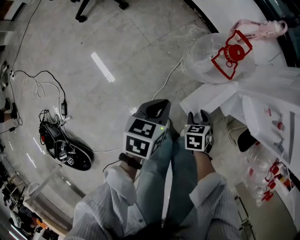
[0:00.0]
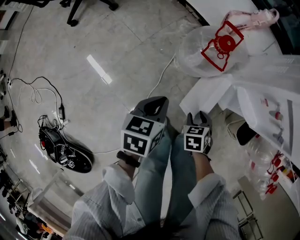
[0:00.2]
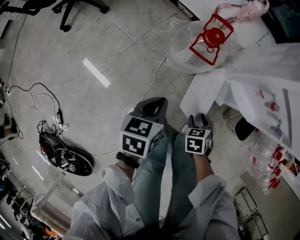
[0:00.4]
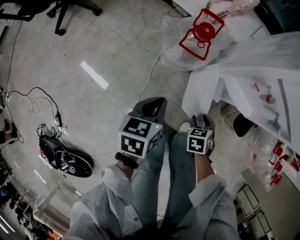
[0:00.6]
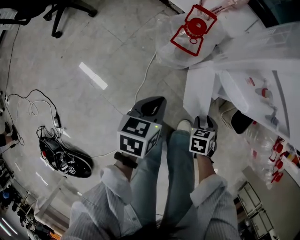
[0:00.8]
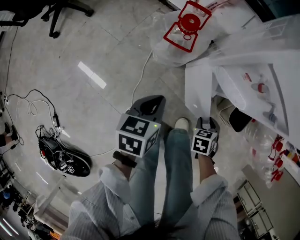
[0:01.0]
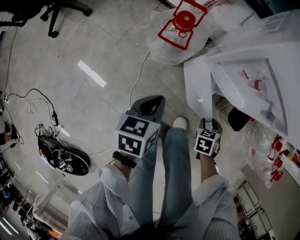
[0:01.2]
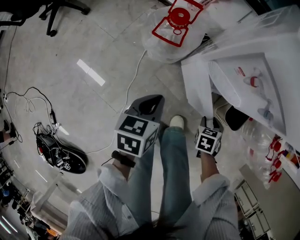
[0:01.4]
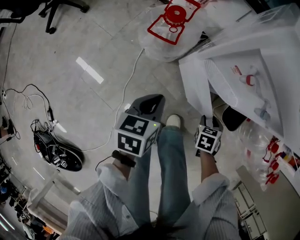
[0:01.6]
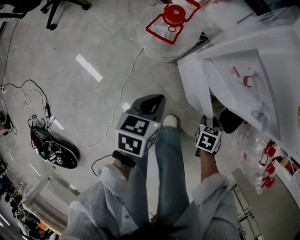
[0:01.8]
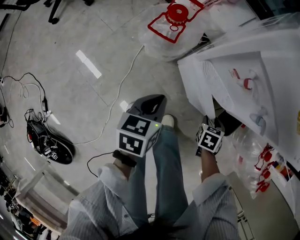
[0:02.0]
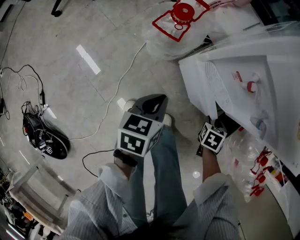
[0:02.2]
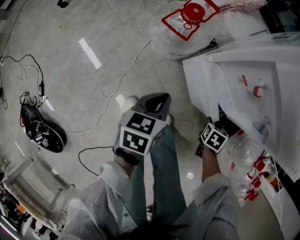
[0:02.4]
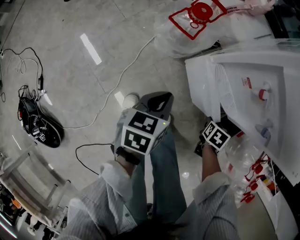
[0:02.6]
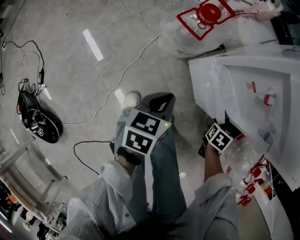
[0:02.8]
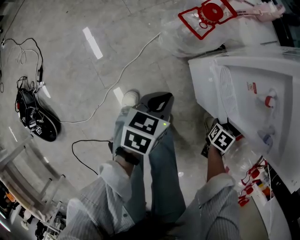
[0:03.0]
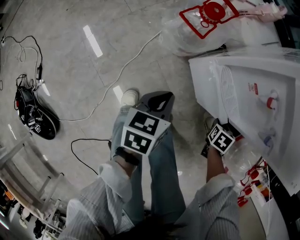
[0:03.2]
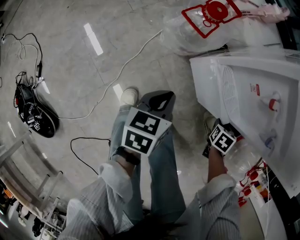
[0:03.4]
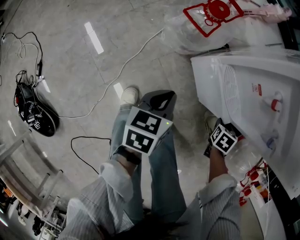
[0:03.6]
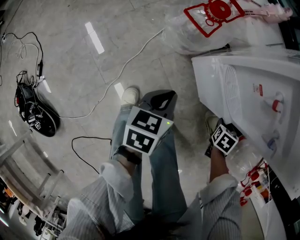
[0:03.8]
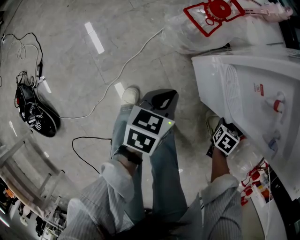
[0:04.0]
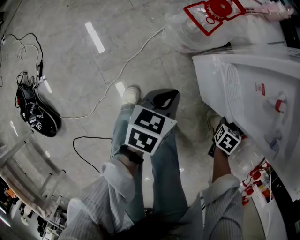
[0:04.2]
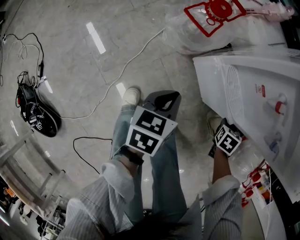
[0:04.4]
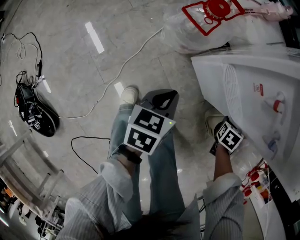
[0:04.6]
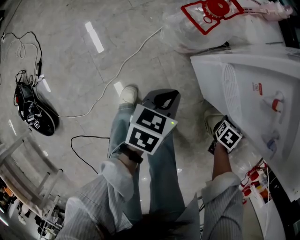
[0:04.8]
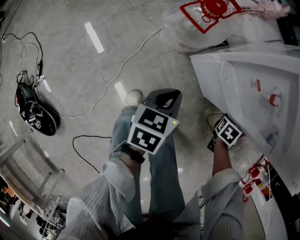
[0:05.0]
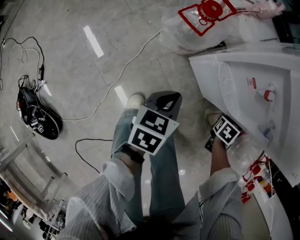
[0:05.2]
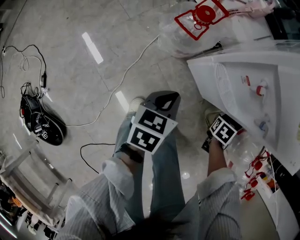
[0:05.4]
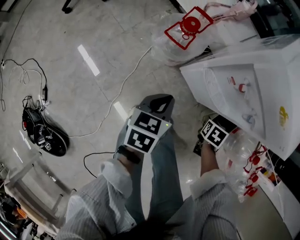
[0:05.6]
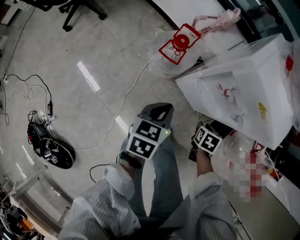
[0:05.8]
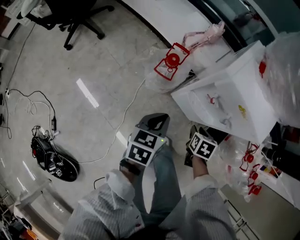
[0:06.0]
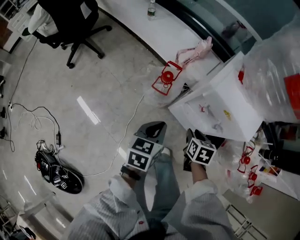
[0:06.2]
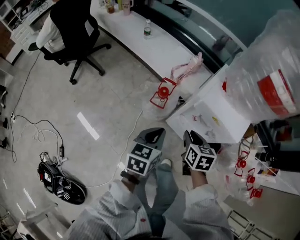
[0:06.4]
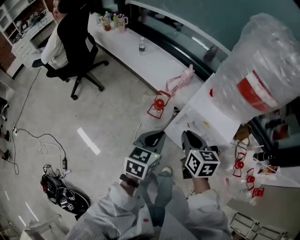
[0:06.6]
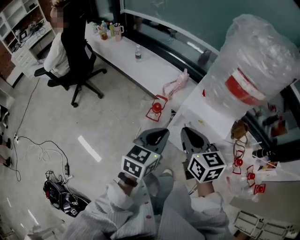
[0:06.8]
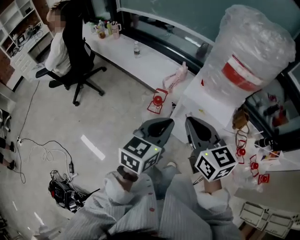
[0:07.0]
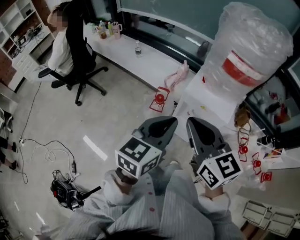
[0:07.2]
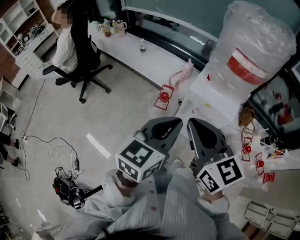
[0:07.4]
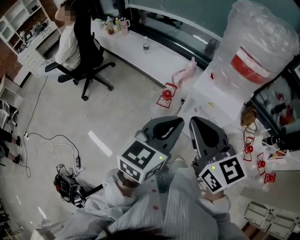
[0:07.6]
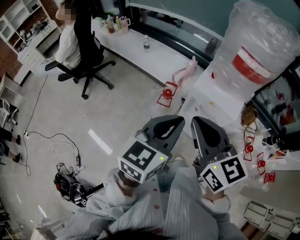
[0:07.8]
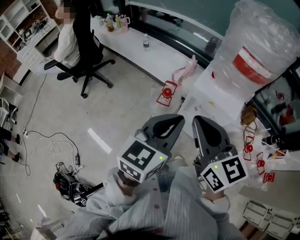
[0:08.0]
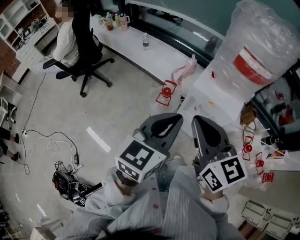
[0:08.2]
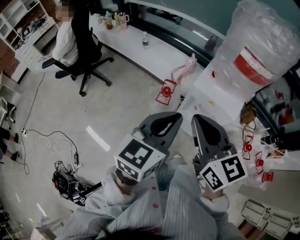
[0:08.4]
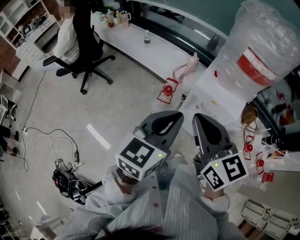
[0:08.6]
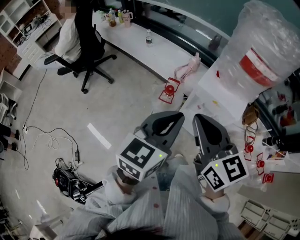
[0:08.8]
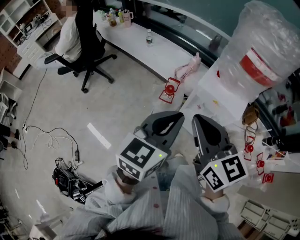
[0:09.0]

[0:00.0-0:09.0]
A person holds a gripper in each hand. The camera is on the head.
0:00.0 to 0:01.6: The right gripper is displaced to the right by approximately 30 cm, and rotates some 20 degrees. Meanwhile the left gripper travels to the right by approximately 20 cm.
0:01.6 to 0:03.0: The right gripper changes place by some 10 cm.
0:03.0 to 0:04.4: The grippers stay close to where they were, moving slightly.
0:04.4 to 0:06.0: The left gripper moves upward, roughly 20 cm, while the right gripper goes roughly 25 cm upward, to the left and backward, and turns by some 20 degrees.
0:06.0 to 0:07.6: The two grippers go some 40 cm upward. The right gripper tilts its fingers about 60 degrees upward, and closes, while the left gripper rotates some 30 degrees.
0:07.6 to 0:09.0: The grippers move only a little.

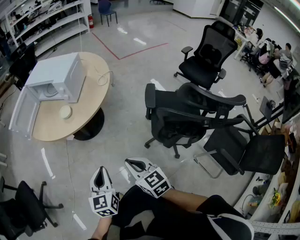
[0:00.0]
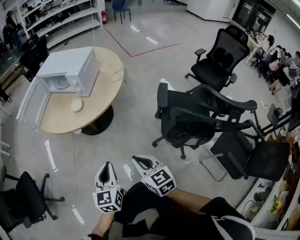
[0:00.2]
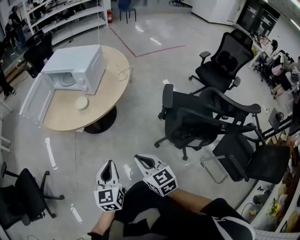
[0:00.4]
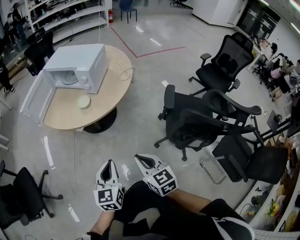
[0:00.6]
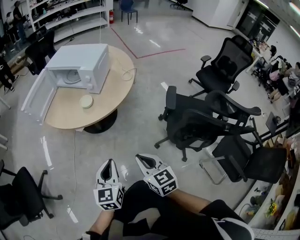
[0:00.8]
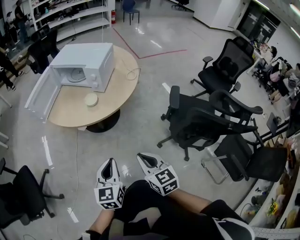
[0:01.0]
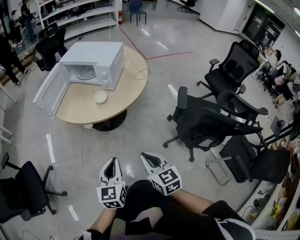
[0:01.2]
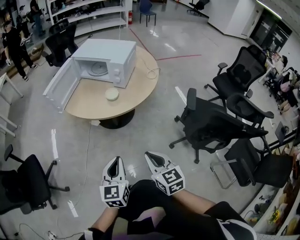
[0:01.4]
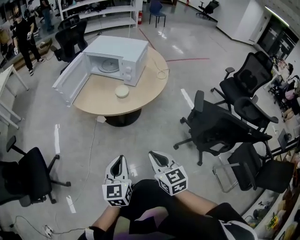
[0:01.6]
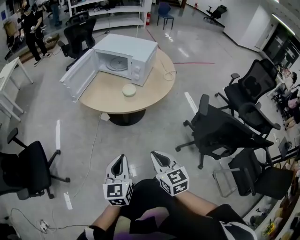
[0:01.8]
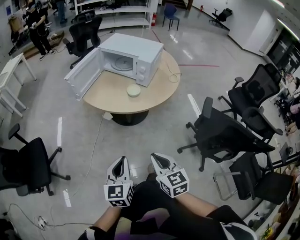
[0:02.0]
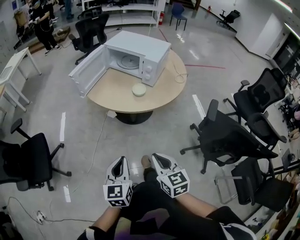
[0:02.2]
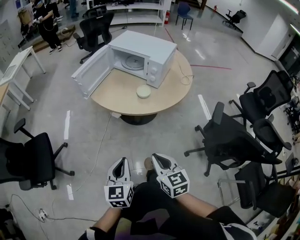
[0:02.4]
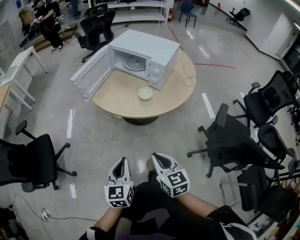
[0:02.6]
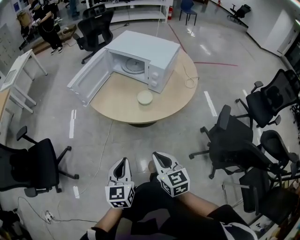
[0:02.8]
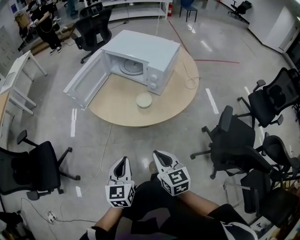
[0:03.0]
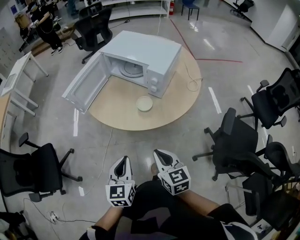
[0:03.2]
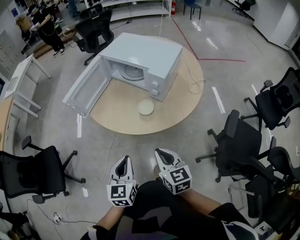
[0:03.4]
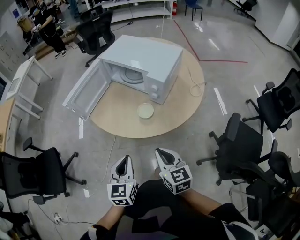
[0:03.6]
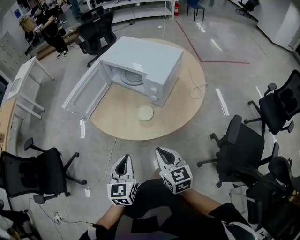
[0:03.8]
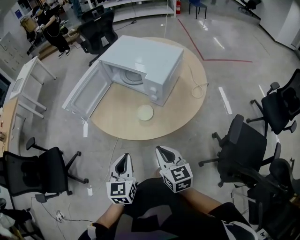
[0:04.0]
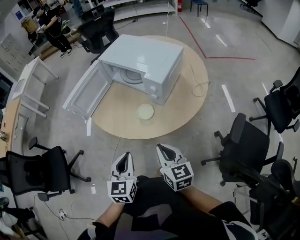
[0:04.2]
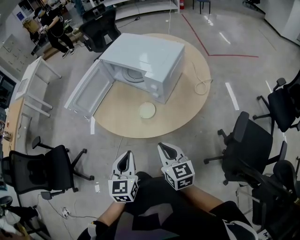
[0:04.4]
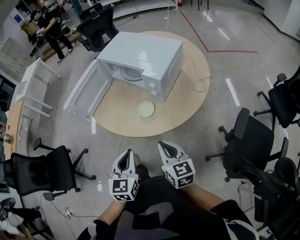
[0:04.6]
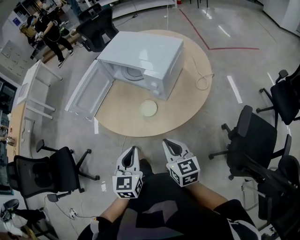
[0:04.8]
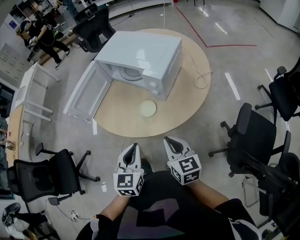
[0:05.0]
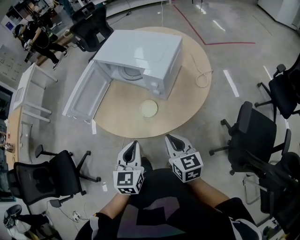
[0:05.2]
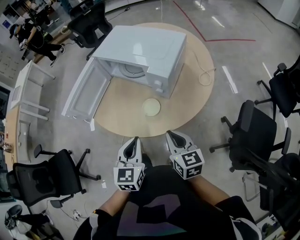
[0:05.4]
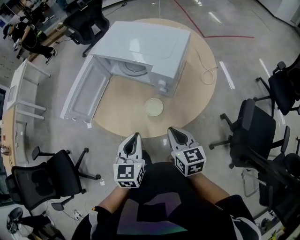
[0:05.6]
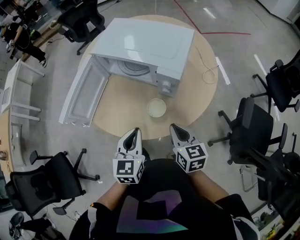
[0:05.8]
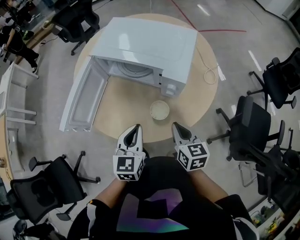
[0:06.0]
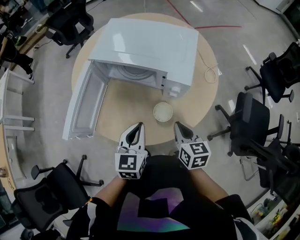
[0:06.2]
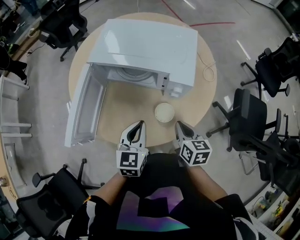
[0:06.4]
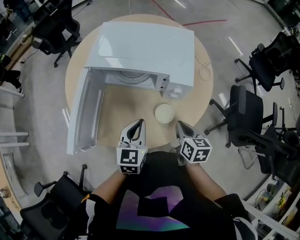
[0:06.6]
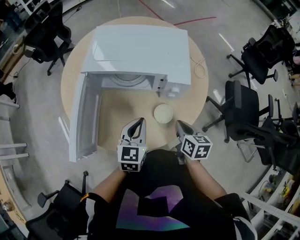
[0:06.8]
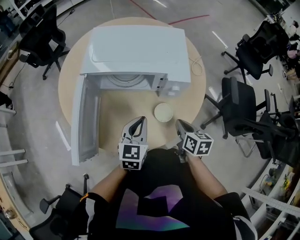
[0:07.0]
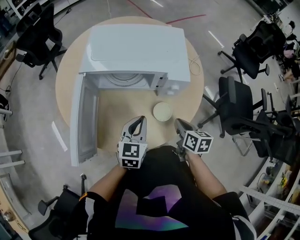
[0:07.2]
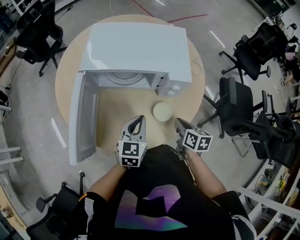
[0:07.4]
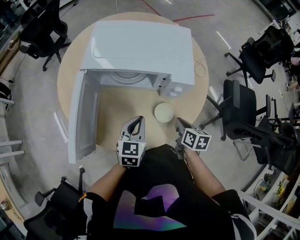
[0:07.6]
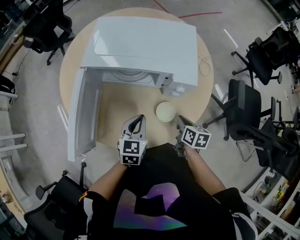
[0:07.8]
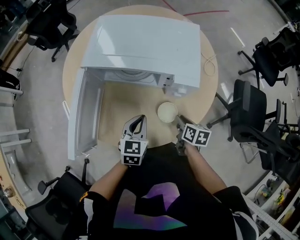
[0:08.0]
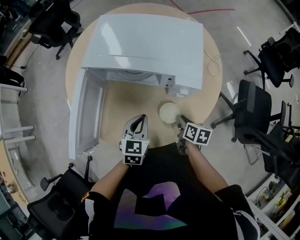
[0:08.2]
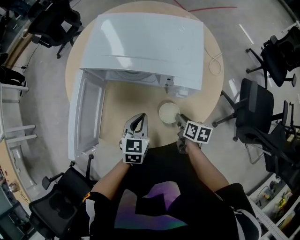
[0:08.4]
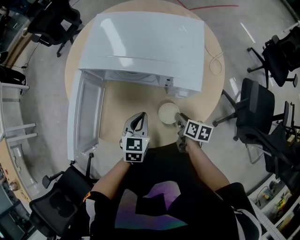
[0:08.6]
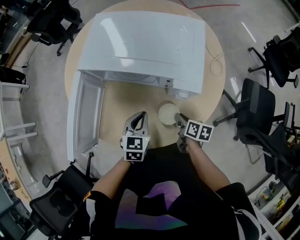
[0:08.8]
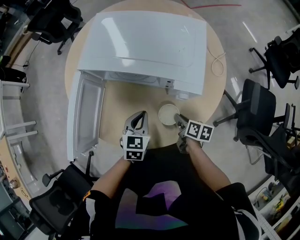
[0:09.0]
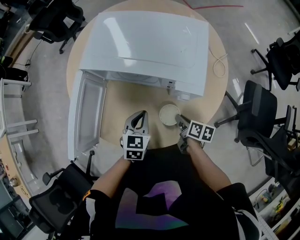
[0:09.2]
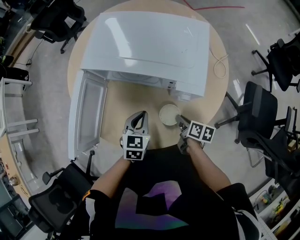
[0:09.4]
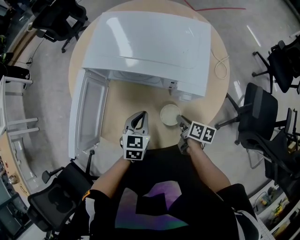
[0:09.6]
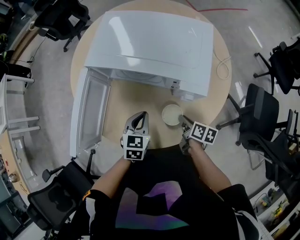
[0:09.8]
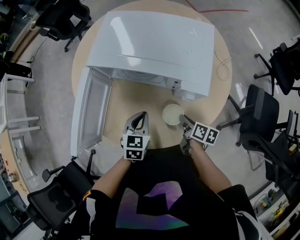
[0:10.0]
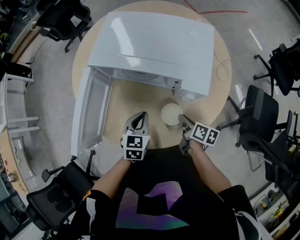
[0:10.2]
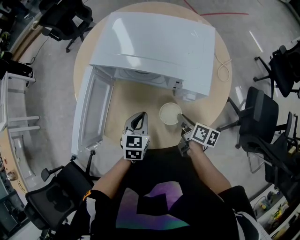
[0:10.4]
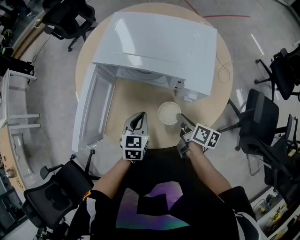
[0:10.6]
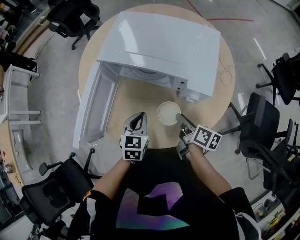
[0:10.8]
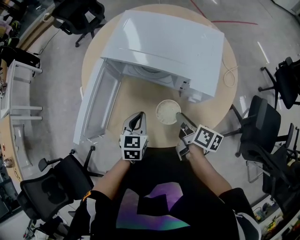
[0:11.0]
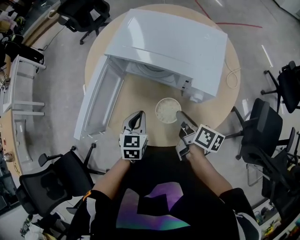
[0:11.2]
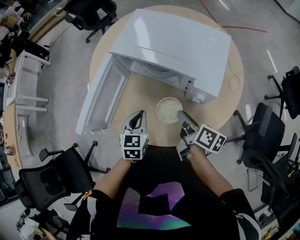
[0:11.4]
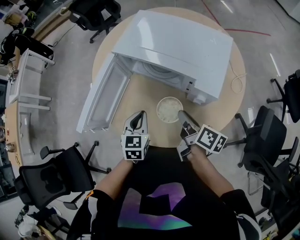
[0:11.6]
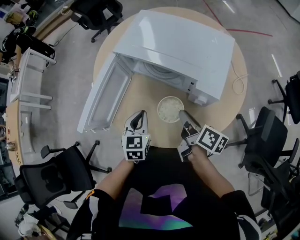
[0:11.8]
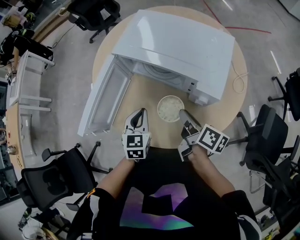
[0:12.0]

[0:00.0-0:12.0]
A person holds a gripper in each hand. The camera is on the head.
0:00.0 to 0:01.6: Both grippers move to the left, roughly 20 cm.
0:01.6 to 0:03.0: The grippers both shift forward by about 15 cm.
0:03.0 to 0:04.4: The two grippers go approximately 15 cm forward and to the right.
0:04.4 to 0:06.0: Both grippers move forward, about 20 cm. The right gripper rotates roughly 20 degrees.
0:06.0 to 0:07.6: The left gripper heads forward, downward and to the left, covering about 10 cm, and rotates approximately 20 degrees; the right gripper moves downward, about 10 cm, and rotates some 30 degrees.
0:07.6 to 0:09.0: The right gripper goes some 10 cm downward. Meanwhile the left gripper ends up roughly 5 cm from where it was.
0:09.0 to 0:10.4: The right gripper moves upward, approximately 5 cm.
0:10.4 to 0:12.0: The left gripper changes place by some 5 cm. The right gripper shifts some 10 cm upward.

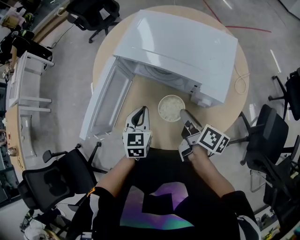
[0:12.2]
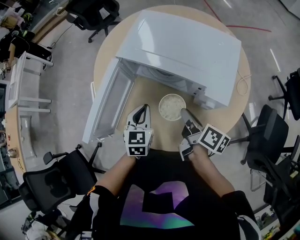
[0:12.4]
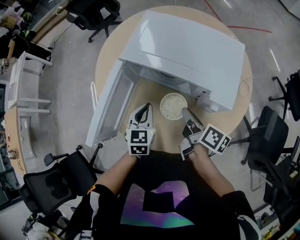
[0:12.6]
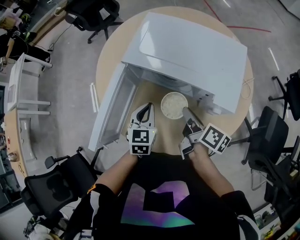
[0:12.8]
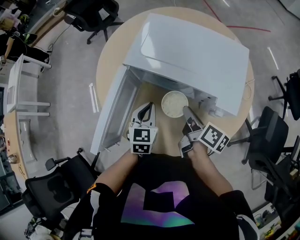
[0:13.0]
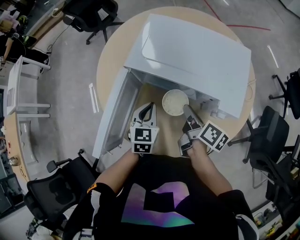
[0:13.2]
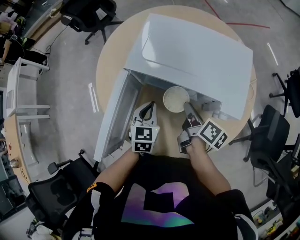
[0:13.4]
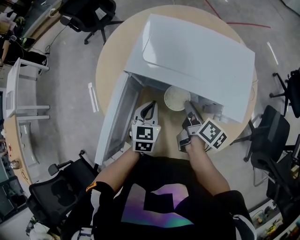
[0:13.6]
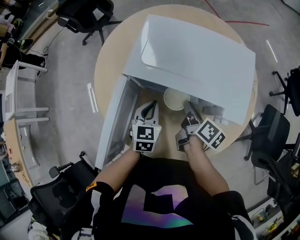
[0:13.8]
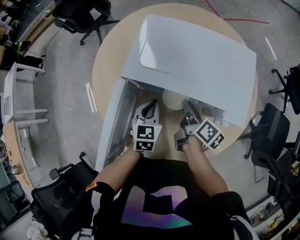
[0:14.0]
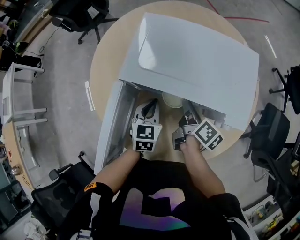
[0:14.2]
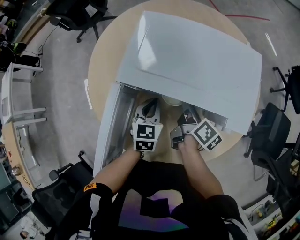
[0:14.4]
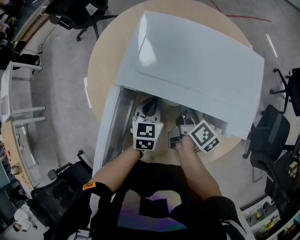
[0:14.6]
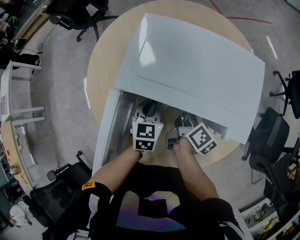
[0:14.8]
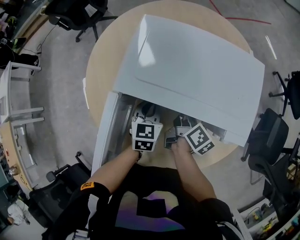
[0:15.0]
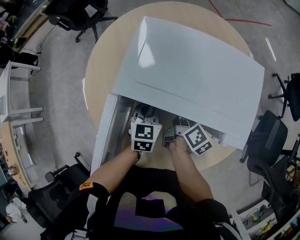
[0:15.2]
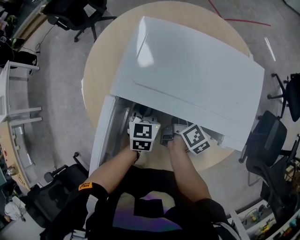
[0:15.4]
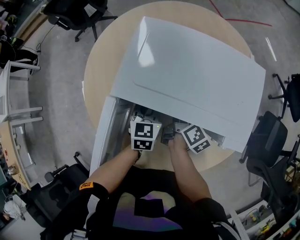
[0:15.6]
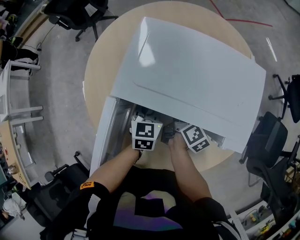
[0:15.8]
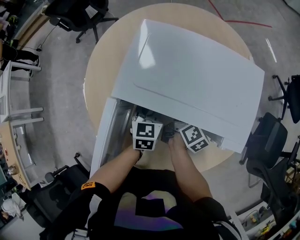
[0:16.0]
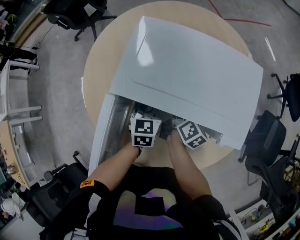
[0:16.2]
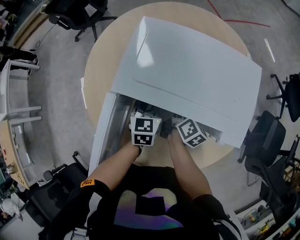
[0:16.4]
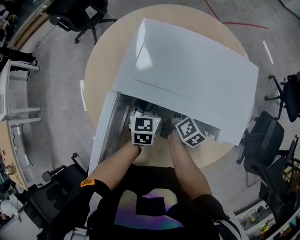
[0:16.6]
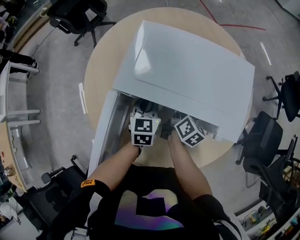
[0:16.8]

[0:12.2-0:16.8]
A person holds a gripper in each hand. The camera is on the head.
0:12.2 to 0:13.8: Both grippers move forward, approximately 10 cm.
0:13.8 to 0:15.2: Both grippers move forward, approximately 10 cm.
0:15.2 to 0:16.8: There are only small adjustments of the grippers.
